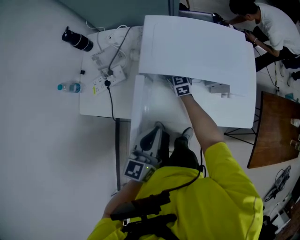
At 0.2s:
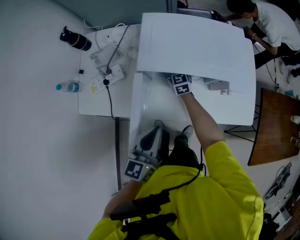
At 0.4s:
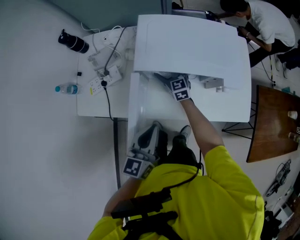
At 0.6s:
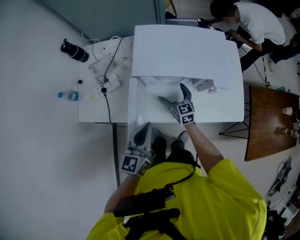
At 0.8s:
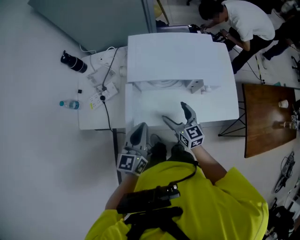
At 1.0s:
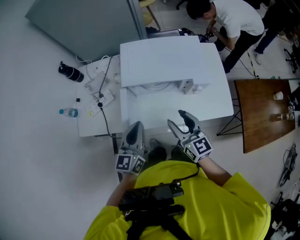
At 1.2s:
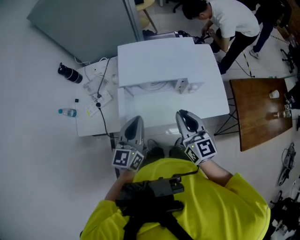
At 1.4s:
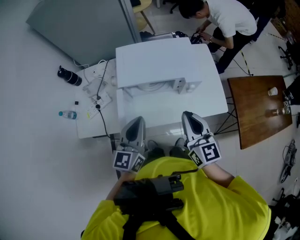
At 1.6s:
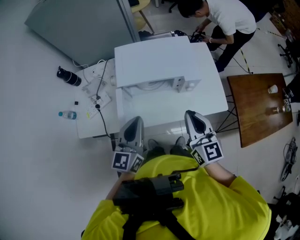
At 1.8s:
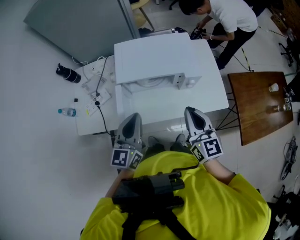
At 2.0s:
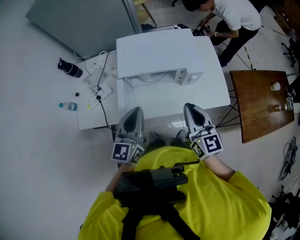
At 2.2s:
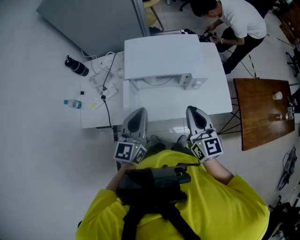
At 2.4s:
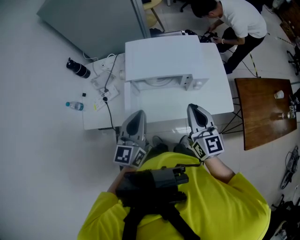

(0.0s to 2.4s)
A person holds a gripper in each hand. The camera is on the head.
0.0s - 1.2s: The left gripper shifts about 10 cm upward. The right gripper goes roughly 40 cm backward, upward and to the right, rotates approximately 20 degrees, and closes its fingers.
1.2s - 2.4s: There are only small adjustments of the grippers.

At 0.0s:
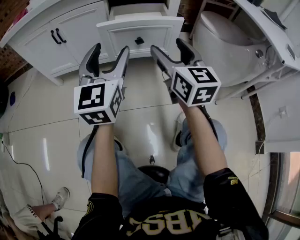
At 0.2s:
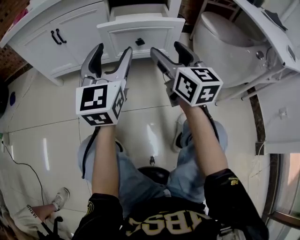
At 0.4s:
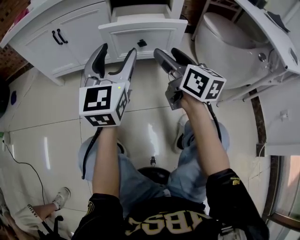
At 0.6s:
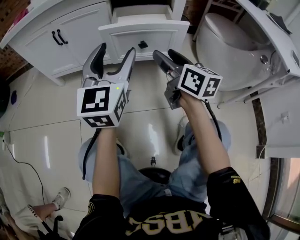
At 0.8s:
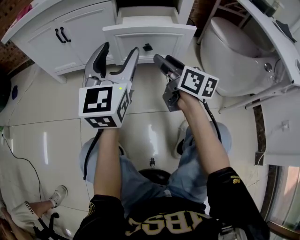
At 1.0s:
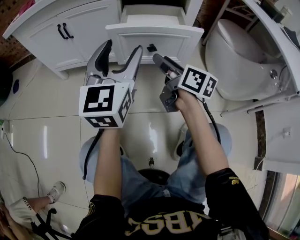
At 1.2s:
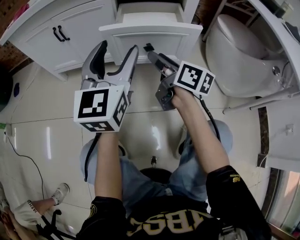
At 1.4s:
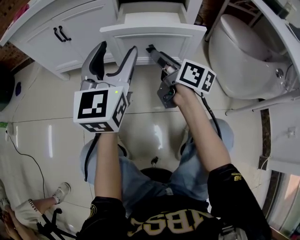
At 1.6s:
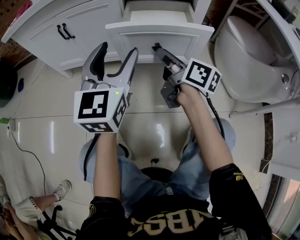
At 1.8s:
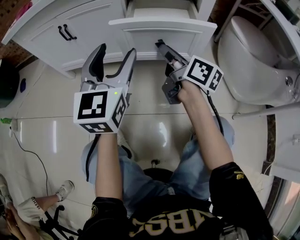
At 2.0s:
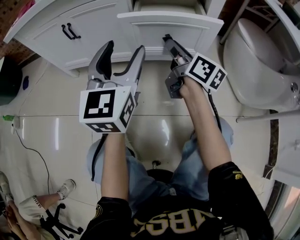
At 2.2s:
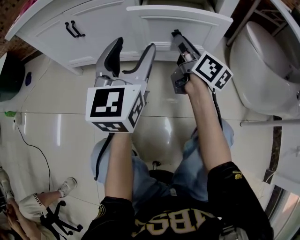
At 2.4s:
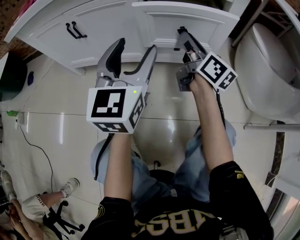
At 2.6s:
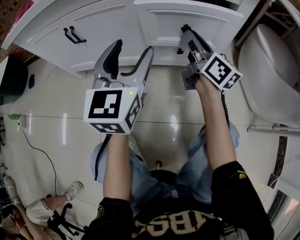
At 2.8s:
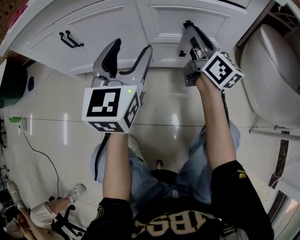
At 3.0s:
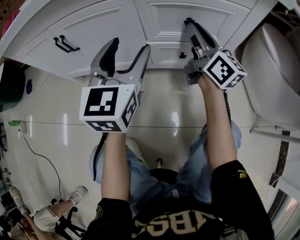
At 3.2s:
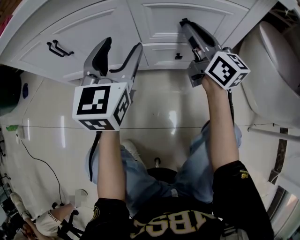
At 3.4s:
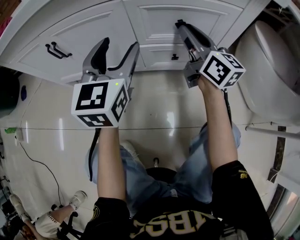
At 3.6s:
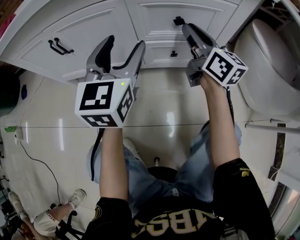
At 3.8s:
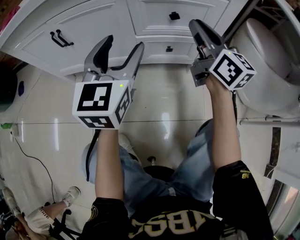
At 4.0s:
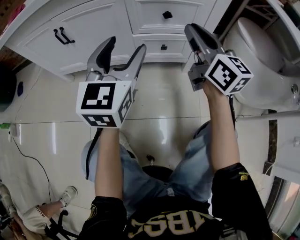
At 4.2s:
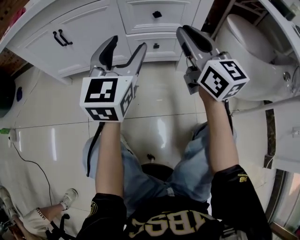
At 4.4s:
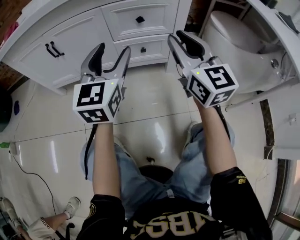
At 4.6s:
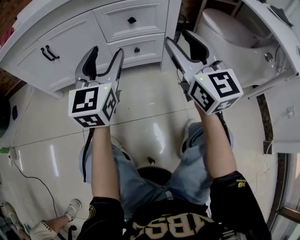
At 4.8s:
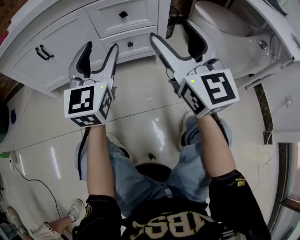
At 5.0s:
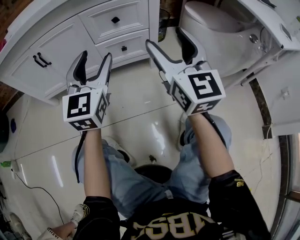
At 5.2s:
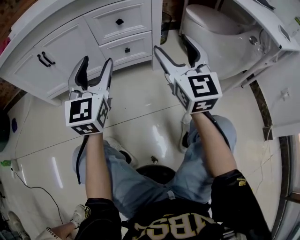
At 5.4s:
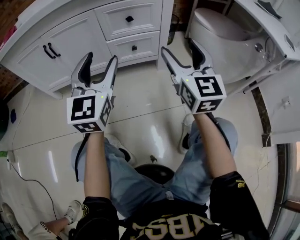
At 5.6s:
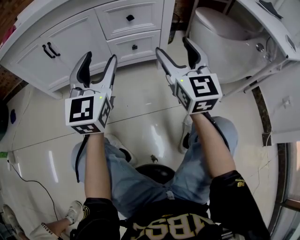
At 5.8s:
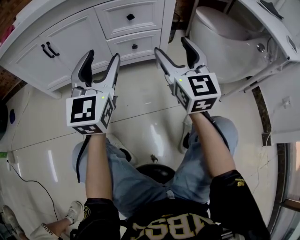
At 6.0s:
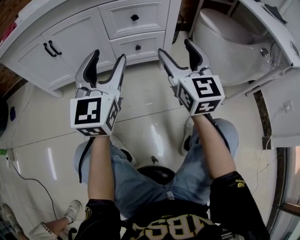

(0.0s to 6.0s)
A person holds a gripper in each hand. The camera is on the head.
0.0s - 1.6s: The right gripper shifts roughly 15 cm forward and downward, rotates around the line of its fingers by approximately 50 degrees, clockwise from behind, and closes up. Meanwhile the left gripper moves forward, roughly 5 cm.
1.6s - 3.0s: The grippers both shift forward by roughly 20 cm. The right gripper turns by approximately 30 degrees.
3.0s - 4.4s: The right gripper moves backward and upward, some 25 cm, and swivels some 40 degrees. The left gripper moves backward, roughly 15 cm.
4.4s - 6.0s: Both grippers move backward, roughly 5 cm. The right gripper opens.

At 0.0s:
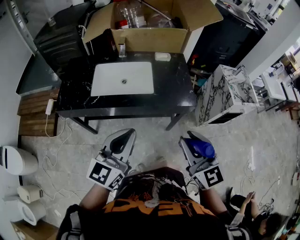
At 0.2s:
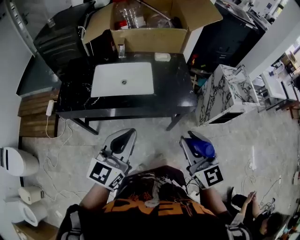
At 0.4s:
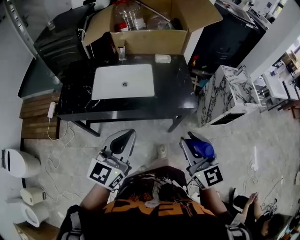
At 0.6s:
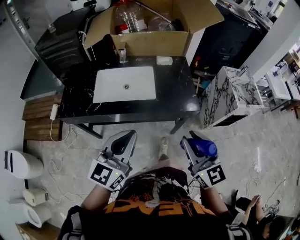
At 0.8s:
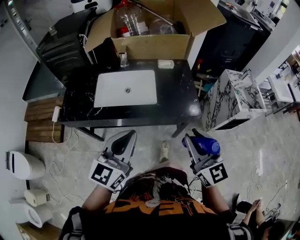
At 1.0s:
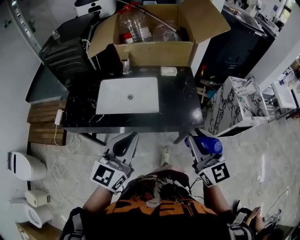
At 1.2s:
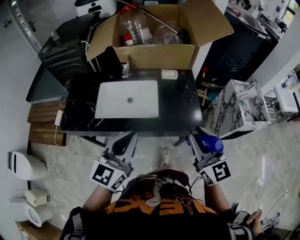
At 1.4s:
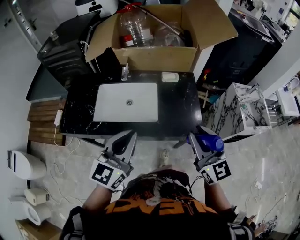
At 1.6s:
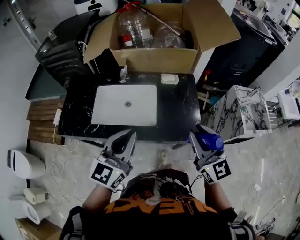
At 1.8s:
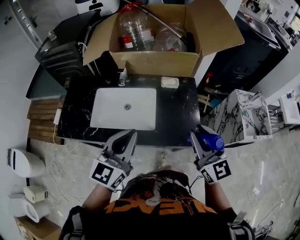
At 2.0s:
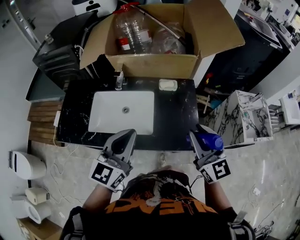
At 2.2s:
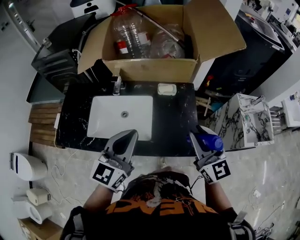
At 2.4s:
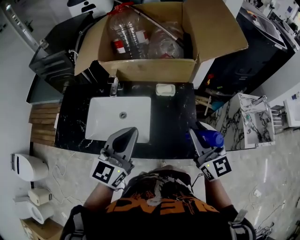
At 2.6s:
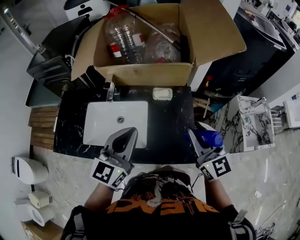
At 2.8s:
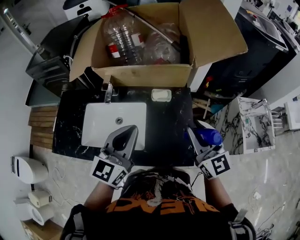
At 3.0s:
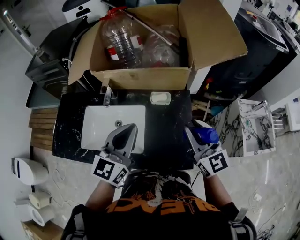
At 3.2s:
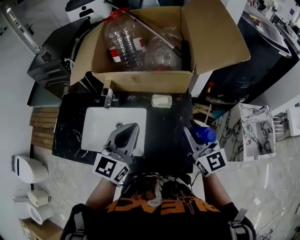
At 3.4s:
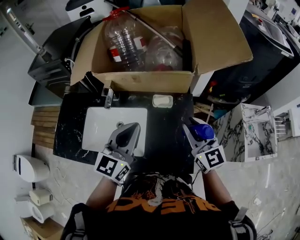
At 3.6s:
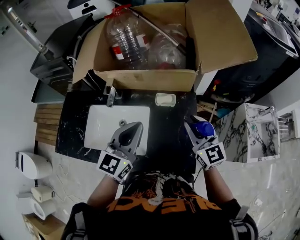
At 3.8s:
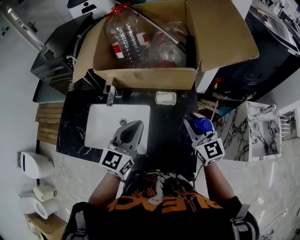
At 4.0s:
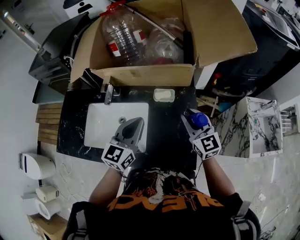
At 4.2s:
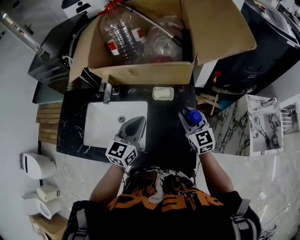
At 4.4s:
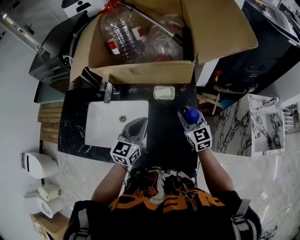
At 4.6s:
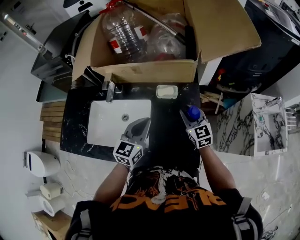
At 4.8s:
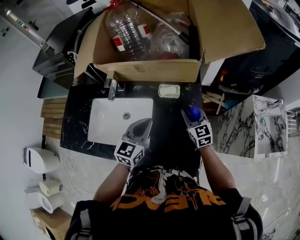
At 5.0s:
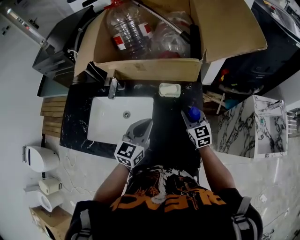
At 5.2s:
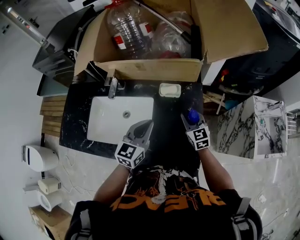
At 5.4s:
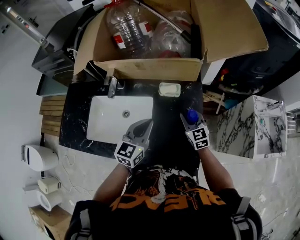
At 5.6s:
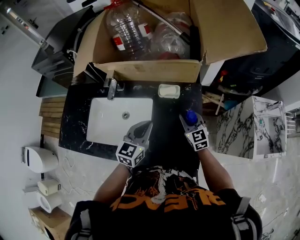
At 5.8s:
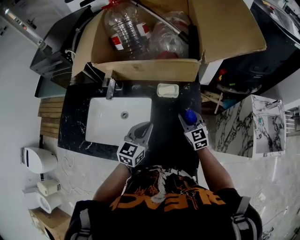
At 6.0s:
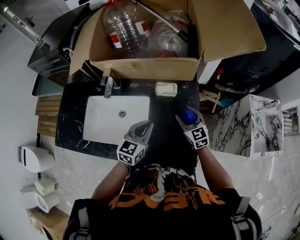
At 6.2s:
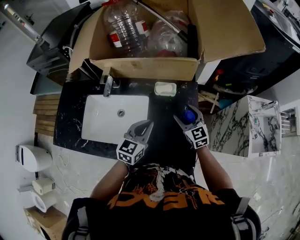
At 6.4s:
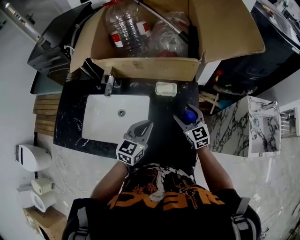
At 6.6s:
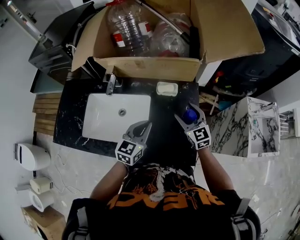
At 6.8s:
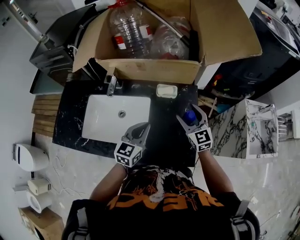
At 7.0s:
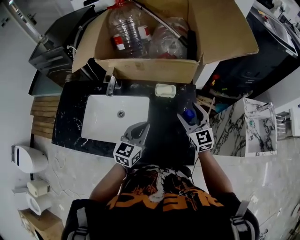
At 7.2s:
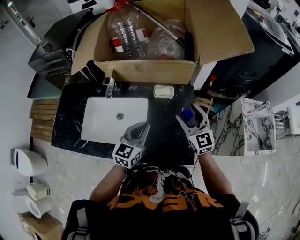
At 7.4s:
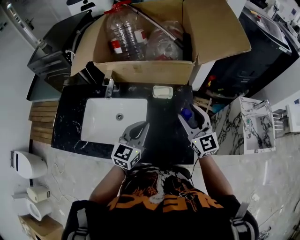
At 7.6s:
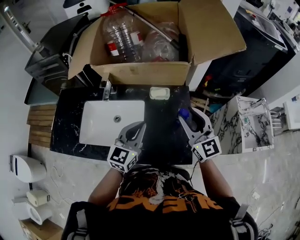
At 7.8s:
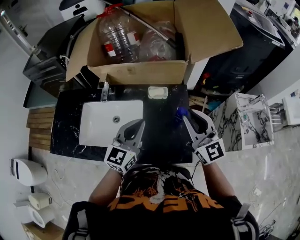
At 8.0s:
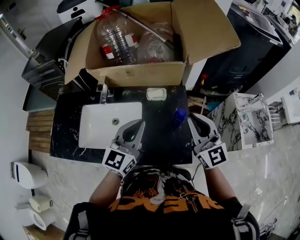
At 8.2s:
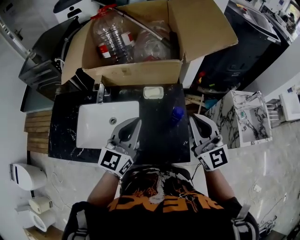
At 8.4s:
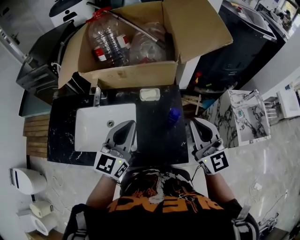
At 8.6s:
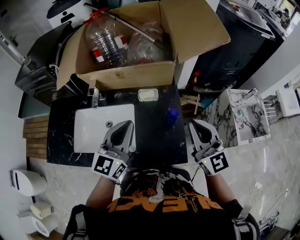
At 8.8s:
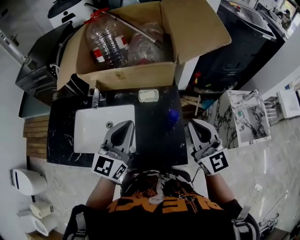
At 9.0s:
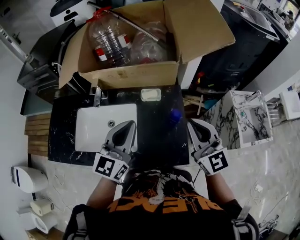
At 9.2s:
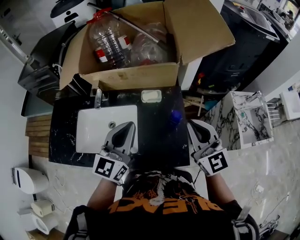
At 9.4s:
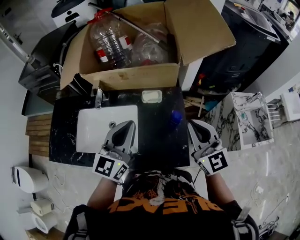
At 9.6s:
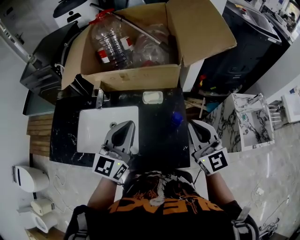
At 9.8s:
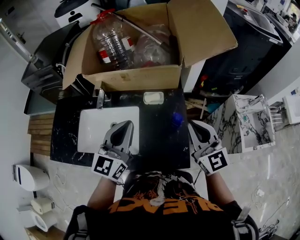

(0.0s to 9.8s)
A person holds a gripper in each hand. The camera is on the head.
0.0s - 1.4s: Both grippers move forward, approximately 20 cm.
1.4s - 2.8s: The left gripper goes some 25 cm forward and to the right; the right gripper moves forward, approximately 20 cm.
2.8s - 4.2s: The two grippers go roughly 15 cm downward and forward.
4.2s - 5.6s: The left gripper moves downward, some 5 cm; the right gripper moves downward, roughly 10 cm.
5.6s - 7.0s: The right gripper shifts approximately 10 cm upward, and opens up.
7.0s - 8.4s: The right gripper travels upward and backward by roughly 20 cm, and closes. The left gripper moves upward, some 15 cm.
8.4s - 9.8s: The grippers make only small movements.

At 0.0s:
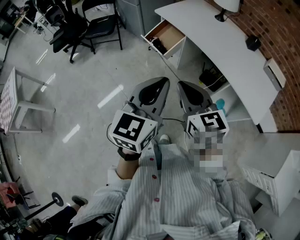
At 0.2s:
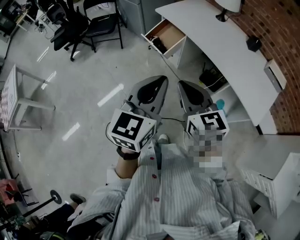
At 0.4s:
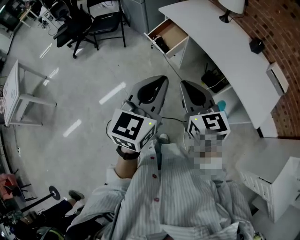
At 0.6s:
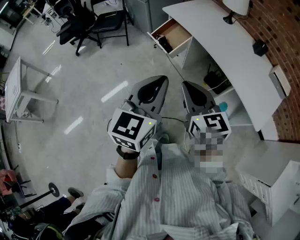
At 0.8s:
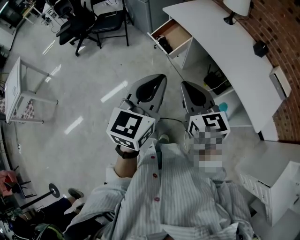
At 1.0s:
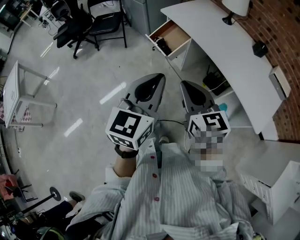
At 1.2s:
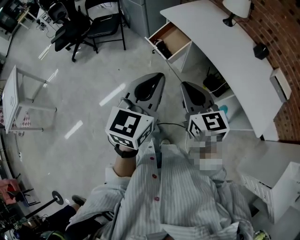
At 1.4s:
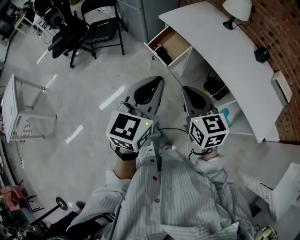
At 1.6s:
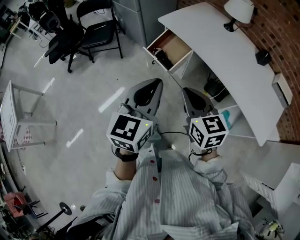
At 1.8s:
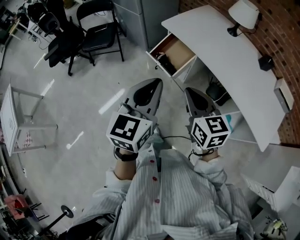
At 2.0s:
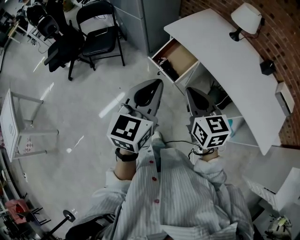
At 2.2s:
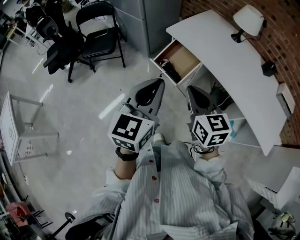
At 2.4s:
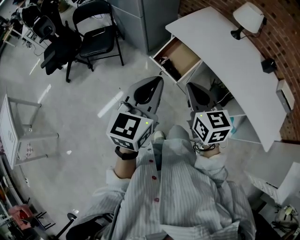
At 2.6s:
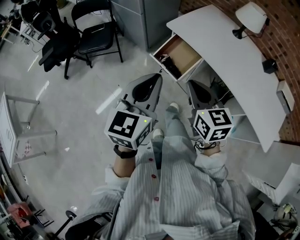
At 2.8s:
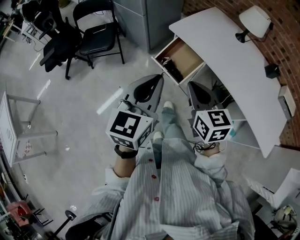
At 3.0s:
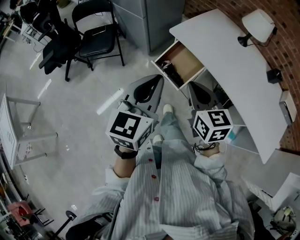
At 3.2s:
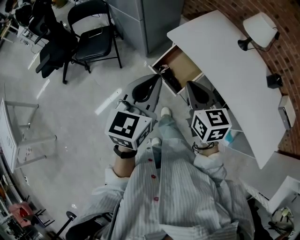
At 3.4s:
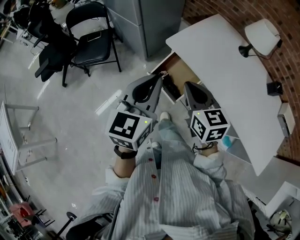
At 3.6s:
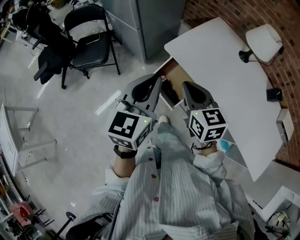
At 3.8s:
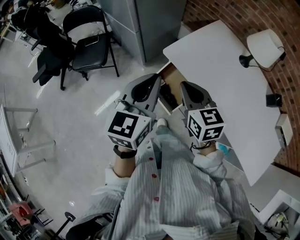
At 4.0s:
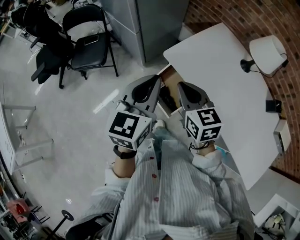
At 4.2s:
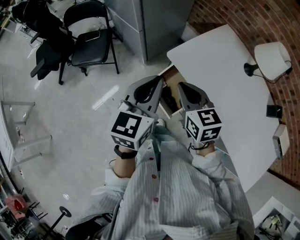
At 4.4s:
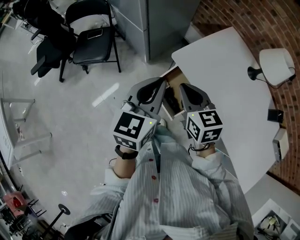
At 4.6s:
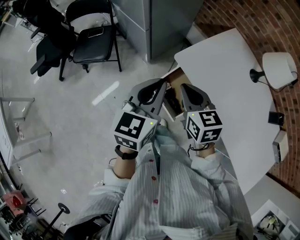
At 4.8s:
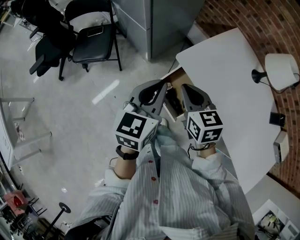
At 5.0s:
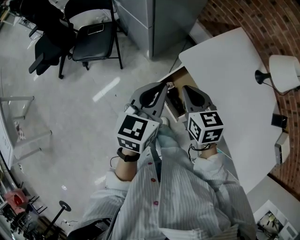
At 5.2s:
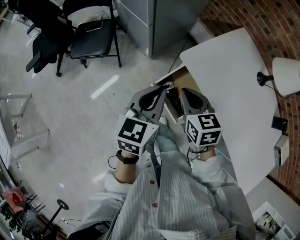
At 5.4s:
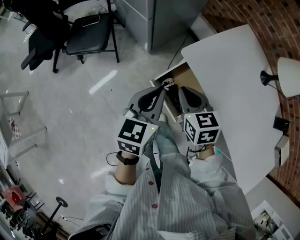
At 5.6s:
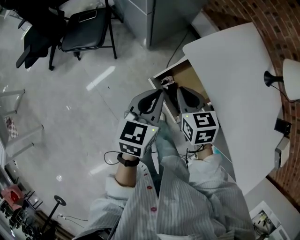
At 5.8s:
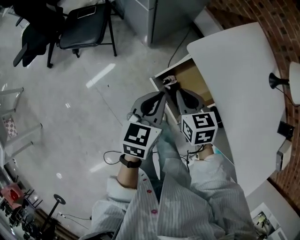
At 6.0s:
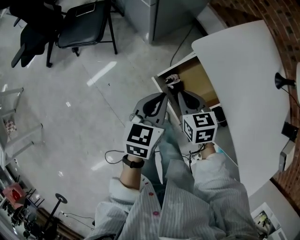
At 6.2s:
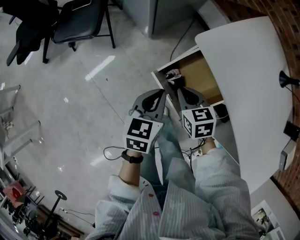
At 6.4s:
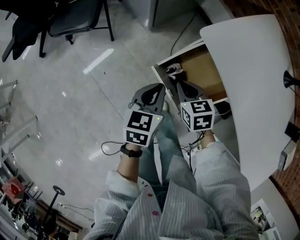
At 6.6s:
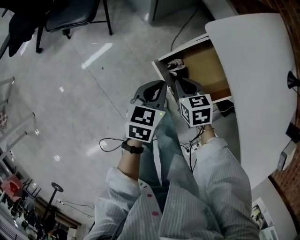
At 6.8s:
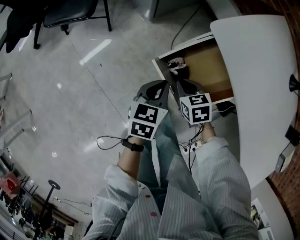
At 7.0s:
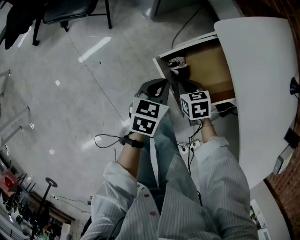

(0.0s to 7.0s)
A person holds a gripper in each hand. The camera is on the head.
0.0s - 1.4s: The grippers both shift forward by some 15 cm.
1.4s - 2.8s: Both grippers move forward and to the left, about 20 cm.
2.8s - 4.2s: Both grippers travel together forward, some 25 cm.
4.2s - 5.6s: Both grippers travel together downward, about 15 cm.
5.6s - 7.0s: Both grippers move downward, about 25 cm. The right gripper turns by roughly 30 degrees.
